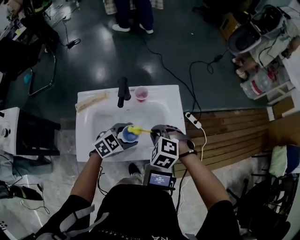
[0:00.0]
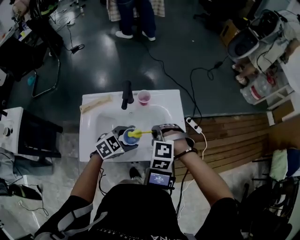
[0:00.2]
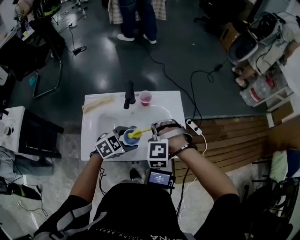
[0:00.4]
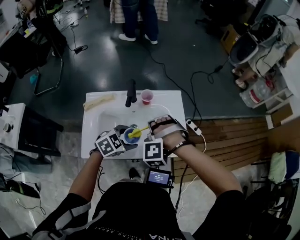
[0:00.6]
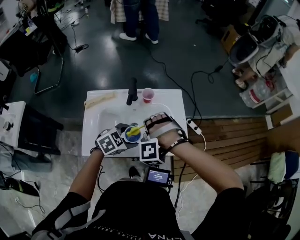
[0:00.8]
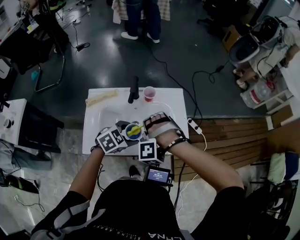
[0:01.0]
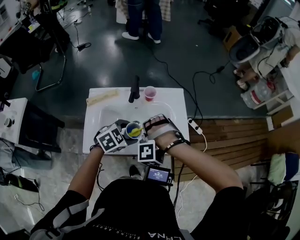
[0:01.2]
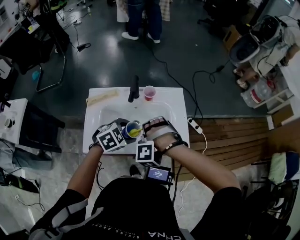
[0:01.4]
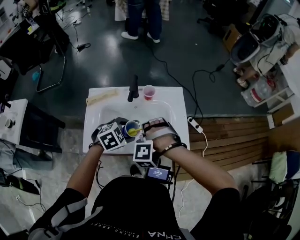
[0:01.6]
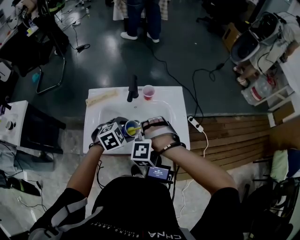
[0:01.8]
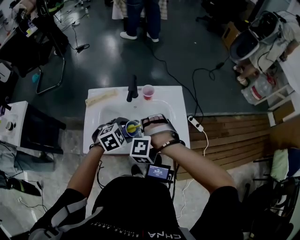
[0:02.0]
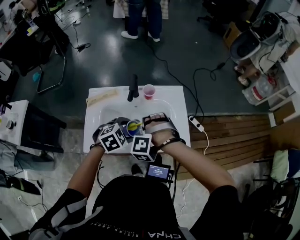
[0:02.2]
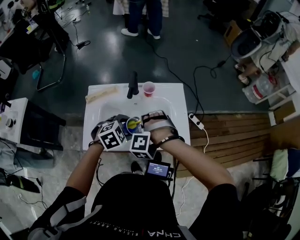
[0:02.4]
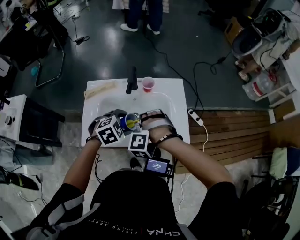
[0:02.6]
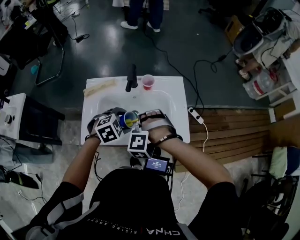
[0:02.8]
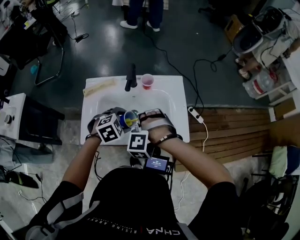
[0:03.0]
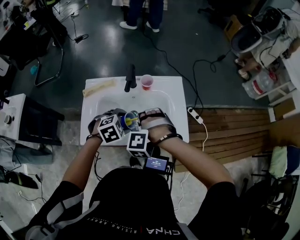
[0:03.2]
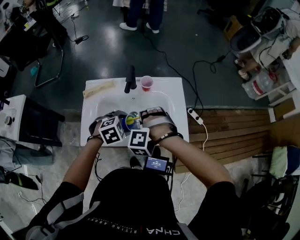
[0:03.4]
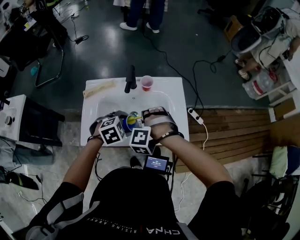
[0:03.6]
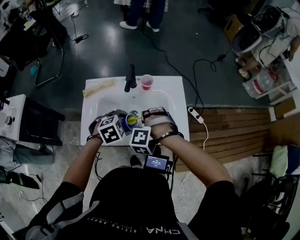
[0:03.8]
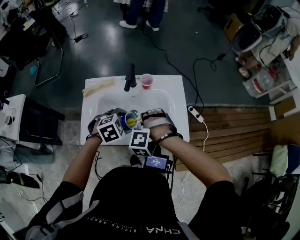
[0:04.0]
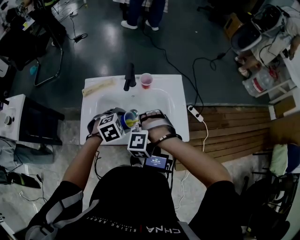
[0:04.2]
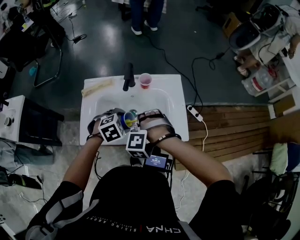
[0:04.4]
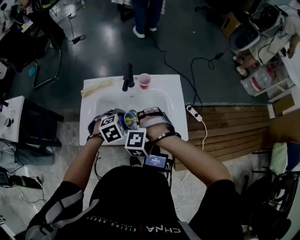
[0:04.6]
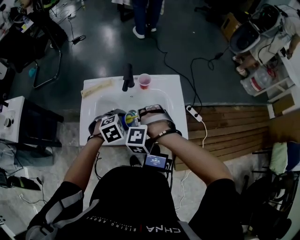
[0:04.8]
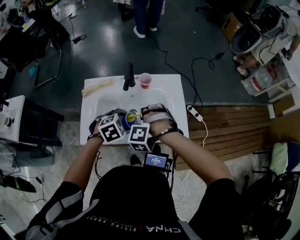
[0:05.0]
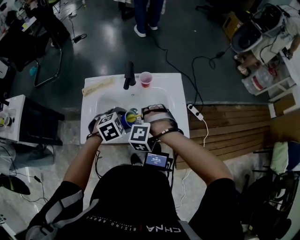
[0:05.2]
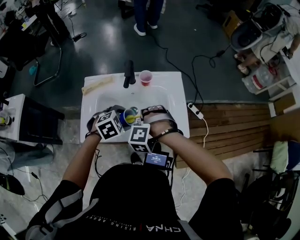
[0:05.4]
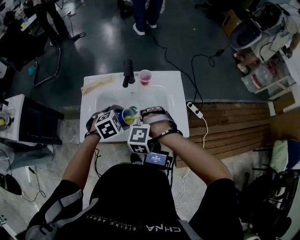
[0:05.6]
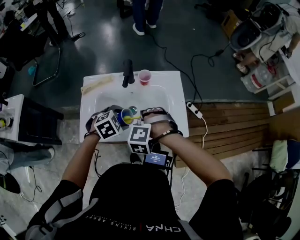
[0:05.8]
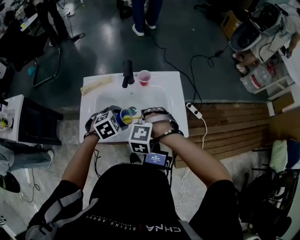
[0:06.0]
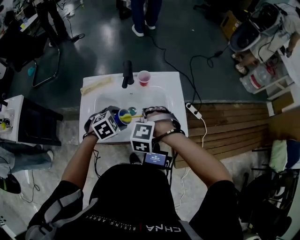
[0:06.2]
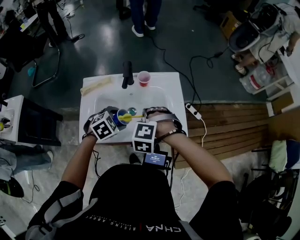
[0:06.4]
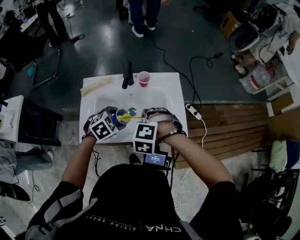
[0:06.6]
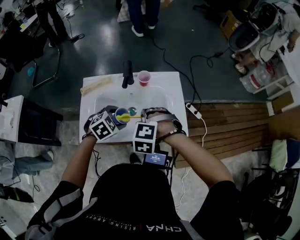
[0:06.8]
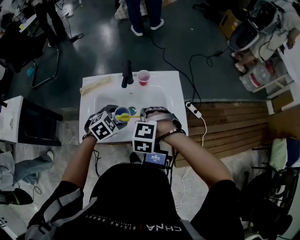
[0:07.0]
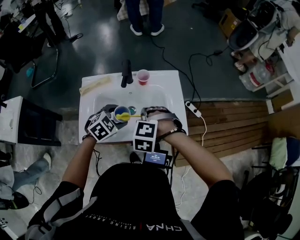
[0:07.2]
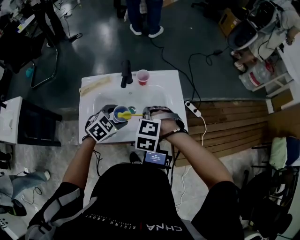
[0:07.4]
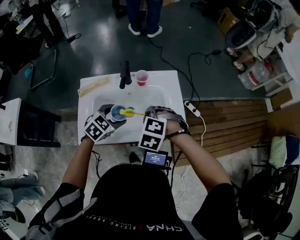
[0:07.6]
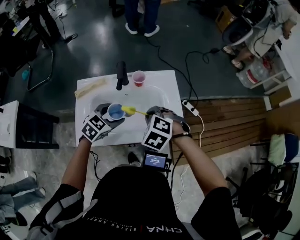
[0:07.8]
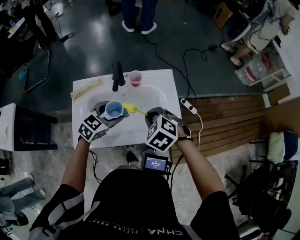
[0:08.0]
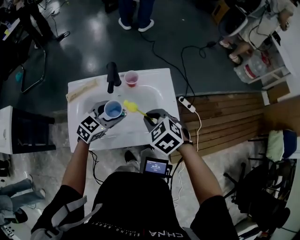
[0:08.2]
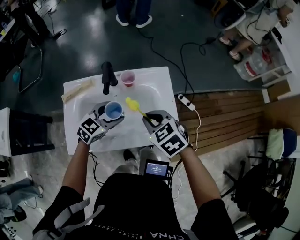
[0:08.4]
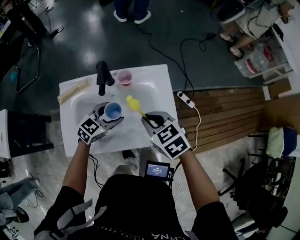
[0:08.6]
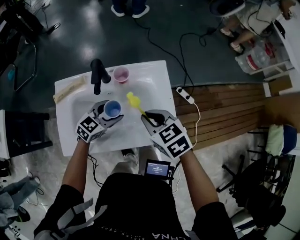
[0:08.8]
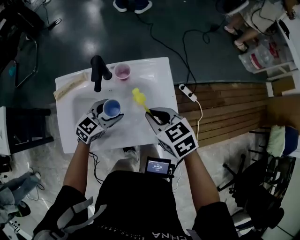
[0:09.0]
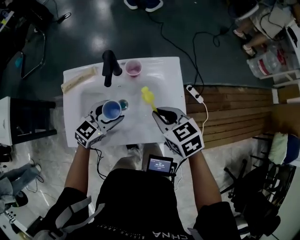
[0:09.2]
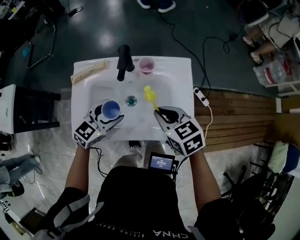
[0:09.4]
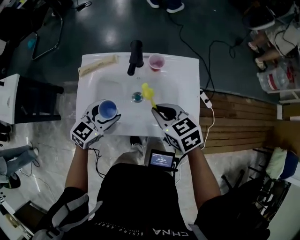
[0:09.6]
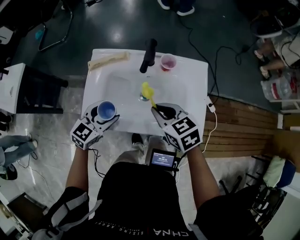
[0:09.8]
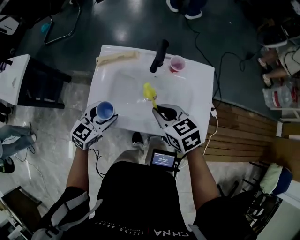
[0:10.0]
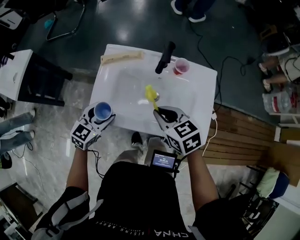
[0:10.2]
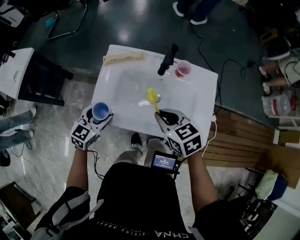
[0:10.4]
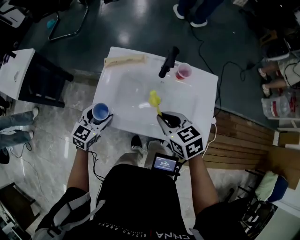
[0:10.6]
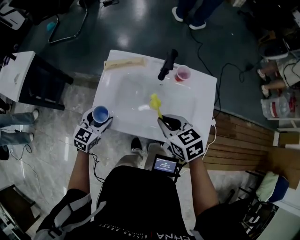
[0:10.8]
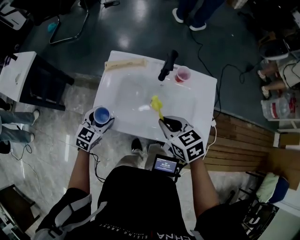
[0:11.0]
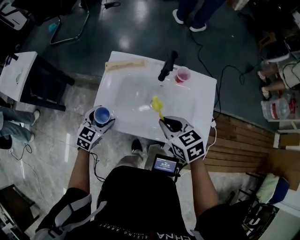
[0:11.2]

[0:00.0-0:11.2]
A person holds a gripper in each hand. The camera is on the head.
0:00.0 to 0:01.6: The grippers both shift backward by about 5 cm. The right gripper twists about 40 degrees counterclockwise, seen from behind.
0:01.6 to 0:04.8: The grippers move only a little.
0:04.8 to 0:06.4: The grippers make only small movements.
0:06.4 to 0:08.0: The left gripper shifts approximately 5 cm forward, and swivels some 30 degrees. The right gripper swivels approximately 40 degrees.
0:08.0 to 0:09.6: The left gripper is displaced to the left by approximately 5 cm, while the right gripper travels to the right and back again, roughly 5 cm each way, and turns by approximately 40 degrees.
0:09.6 to 0:11.2: The right gripper travels to the left by approximately 10 cm. Meanwhile the left gripper is displaced to the left by about 15 cm, and rotates approximately 20 degrees.

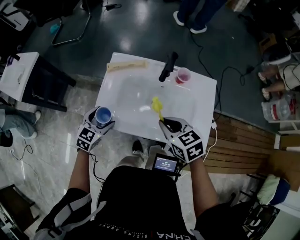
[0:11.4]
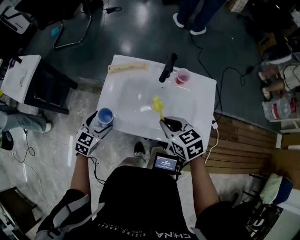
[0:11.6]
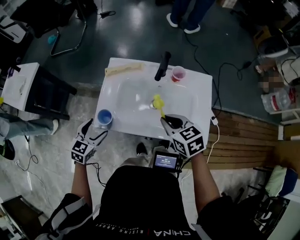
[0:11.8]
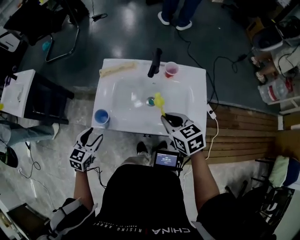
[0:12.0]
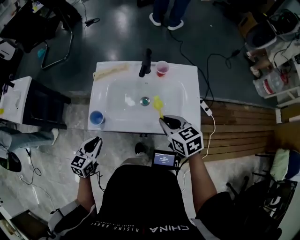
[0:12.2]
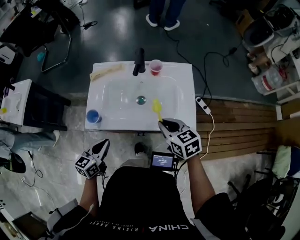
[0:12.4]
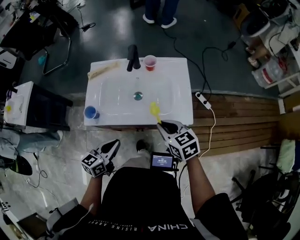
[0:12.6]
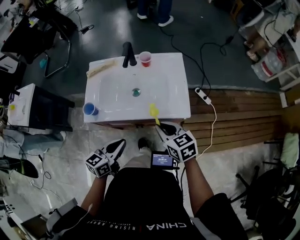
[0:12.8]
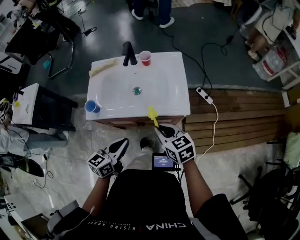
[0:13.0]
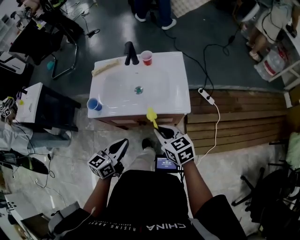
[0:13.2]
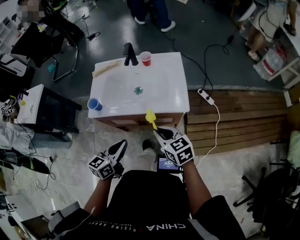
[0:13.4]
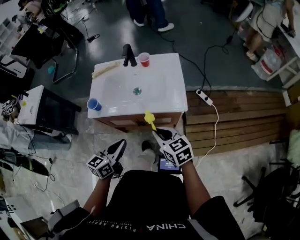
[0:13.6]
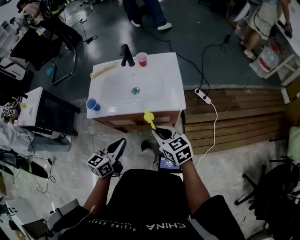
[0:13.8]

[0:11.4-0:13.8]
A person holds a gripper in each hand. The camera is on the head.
0:11.4 to 0:12.6: Both grippers travel together backward and to the right, roughly 20 cm. The left gripper swivels about 30 degrees, and closes its fingers.
0:12.6 to 0:13.8: The right gripper goes approximately 10 cm backward, while the left gripper moves backward and to the right, roughly 10 cm.

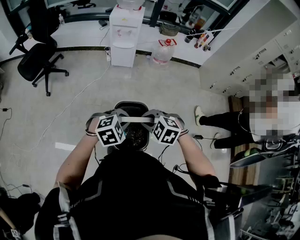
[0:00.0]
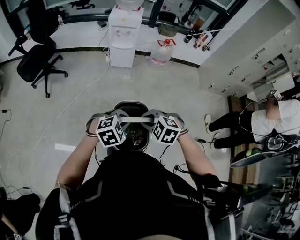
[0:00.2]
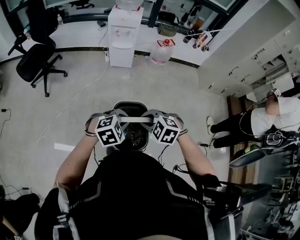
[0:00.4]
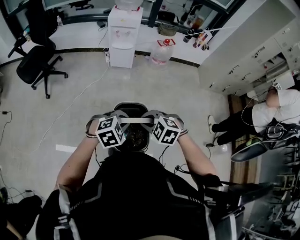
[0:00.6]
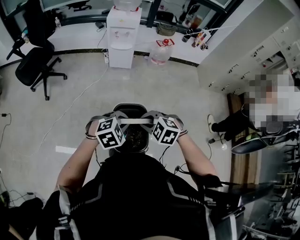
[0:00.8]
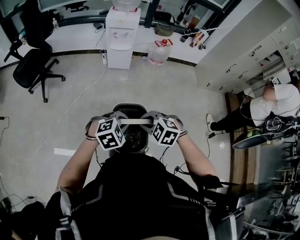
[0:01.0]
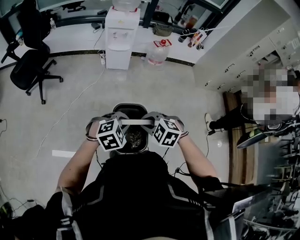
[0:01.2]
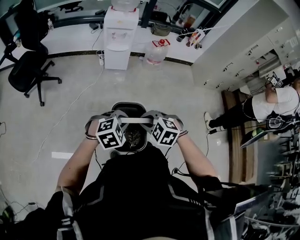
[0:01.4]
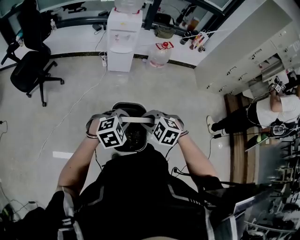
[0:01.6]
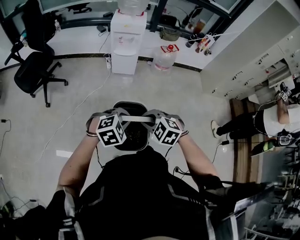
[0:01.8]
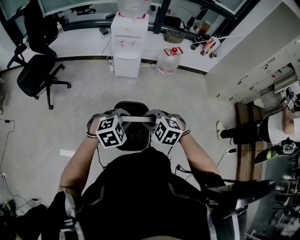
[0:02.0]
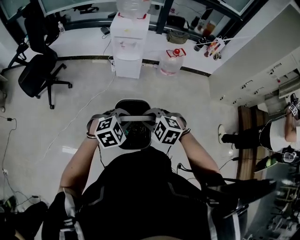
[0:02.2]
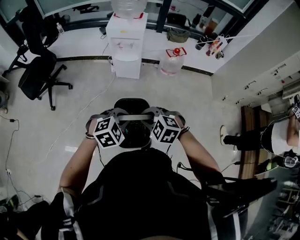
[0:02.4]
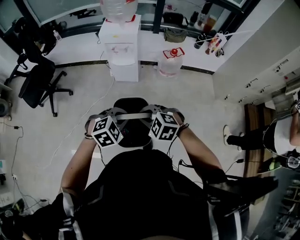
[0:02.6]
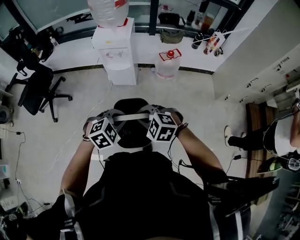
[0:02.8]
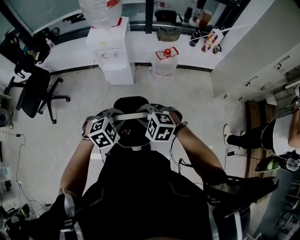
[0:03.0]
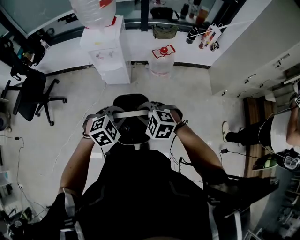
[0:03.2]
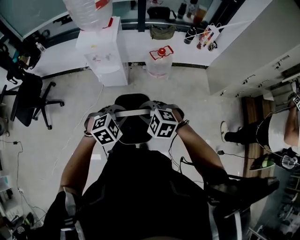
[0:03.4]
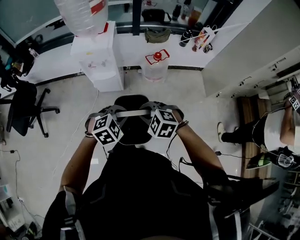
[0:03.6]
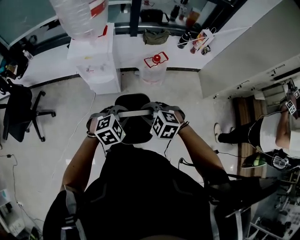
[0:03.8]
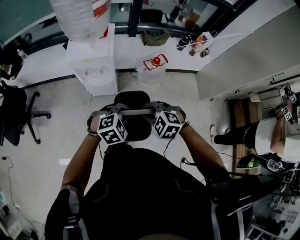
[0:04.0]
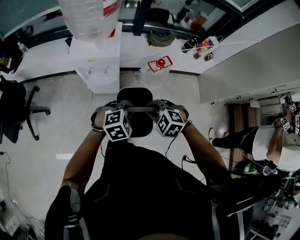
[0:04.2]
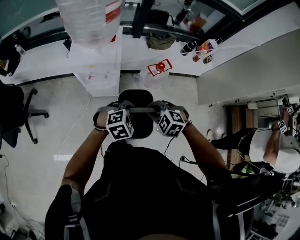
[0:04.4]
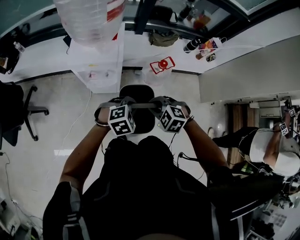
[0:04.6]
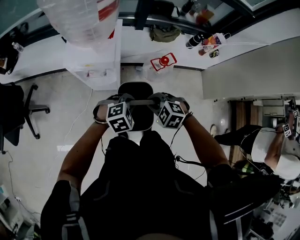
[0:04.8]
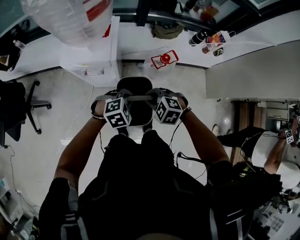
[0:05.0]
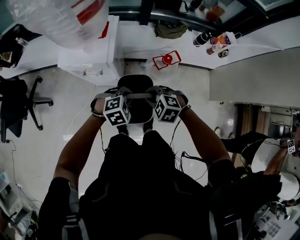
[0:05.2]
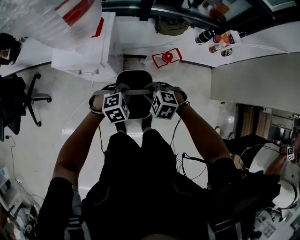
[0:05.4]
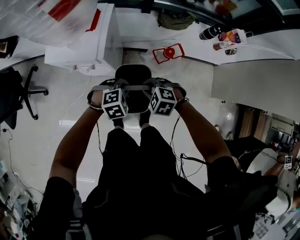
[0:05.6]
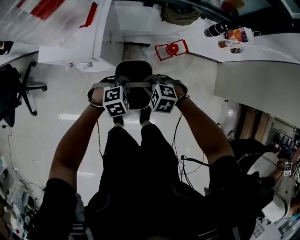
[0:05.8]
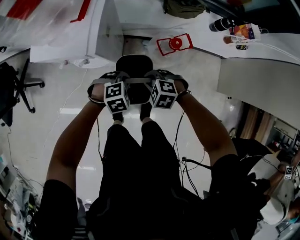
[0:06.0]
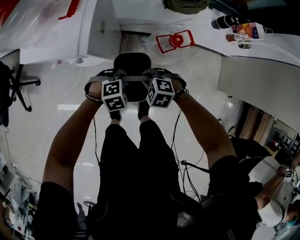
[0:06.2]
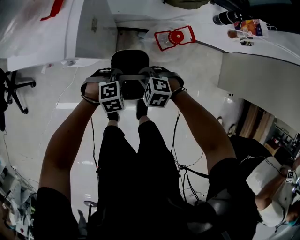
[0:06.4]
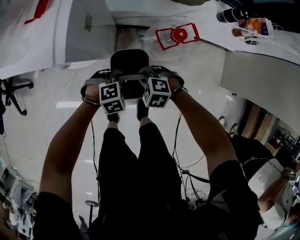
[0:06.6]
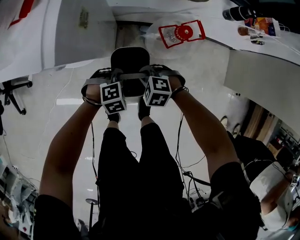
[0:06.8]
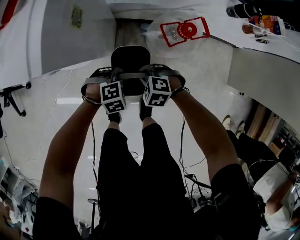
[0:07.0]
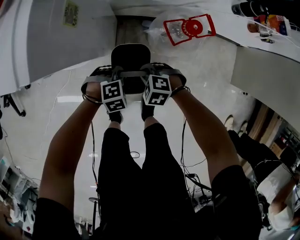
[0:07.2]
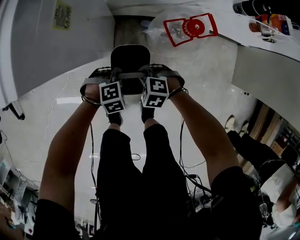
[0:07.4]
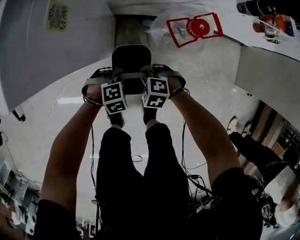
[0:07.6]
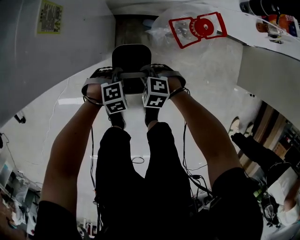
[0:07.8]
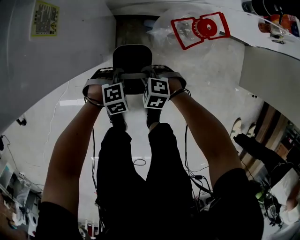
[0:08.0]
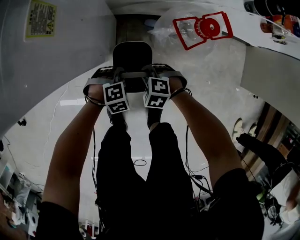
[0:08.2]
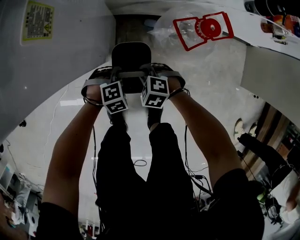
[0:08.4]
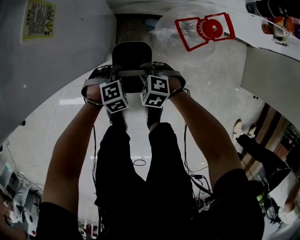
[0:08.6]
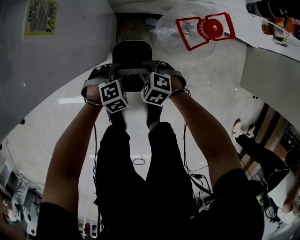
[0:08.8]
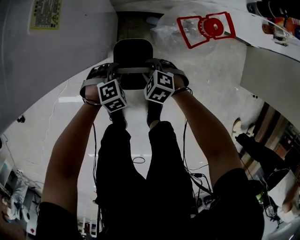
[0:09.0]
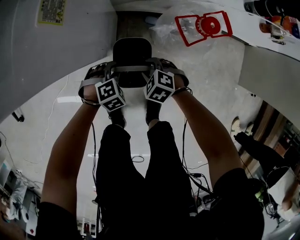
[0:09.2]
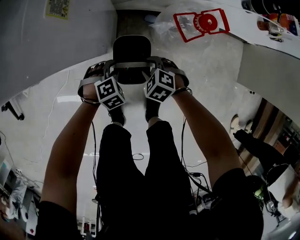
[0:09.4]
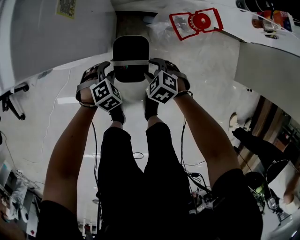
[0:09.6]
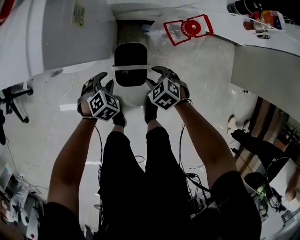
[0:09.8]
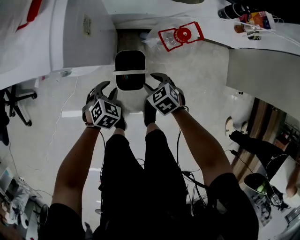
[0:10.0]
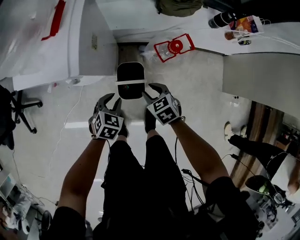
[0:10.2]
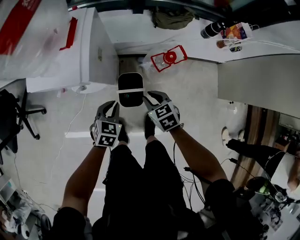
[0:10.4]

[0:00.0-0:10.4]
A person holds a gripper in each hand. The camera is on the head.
0:00.0 to 0:01.4: The grippers both shift to the left by approximately 5 cm.
0:01.4 to 0:03.0: The grippers both shift forward and to the right by about 35 cm.
0:03.0 to 0:04.4: The grippers both shift forward by about 30 cm.
0:04.4 to 0:06.0: The grippers both shift downward by approximately 20 cm.
0:06.0 to 0:07.4: Both grippers travel together downward, approximately 25 cm.
0:07.4 to 0:09.0: The two grippers go approximately 5 cm downward. The left gripper opens its fingers. The right gripper opens up.
0:09.0 to 0:10.4: The two grippers go approximately 30 cm upward. The right gripper rotates about 40 degrees, while the left gripper rotates around the line of its fingers by about 40 degrees, counterclockwise from behind, and closes its fingers.
